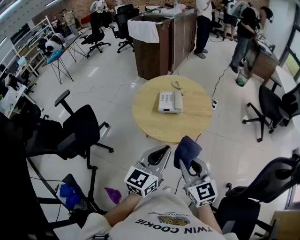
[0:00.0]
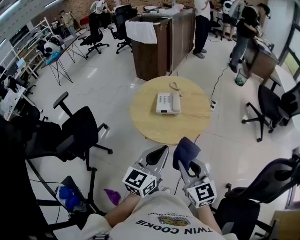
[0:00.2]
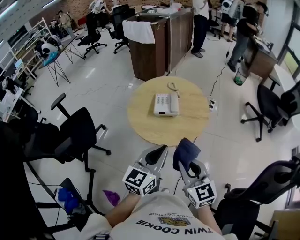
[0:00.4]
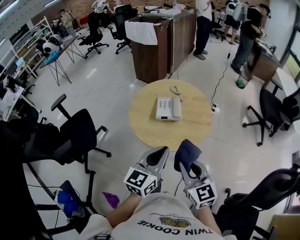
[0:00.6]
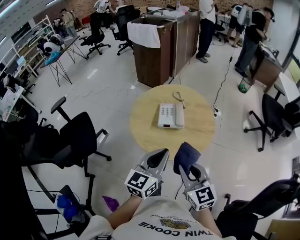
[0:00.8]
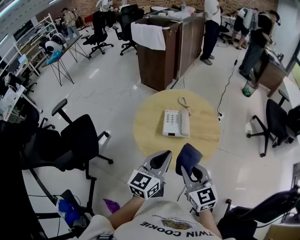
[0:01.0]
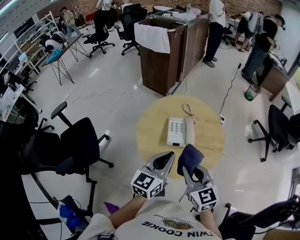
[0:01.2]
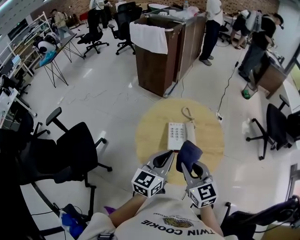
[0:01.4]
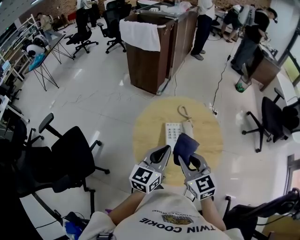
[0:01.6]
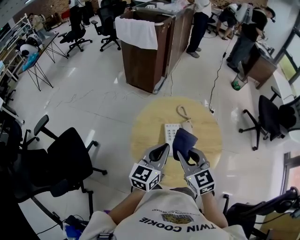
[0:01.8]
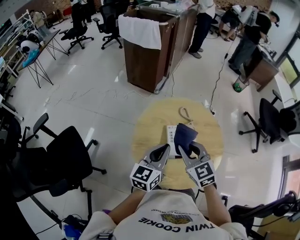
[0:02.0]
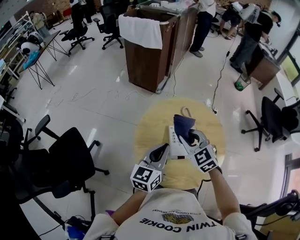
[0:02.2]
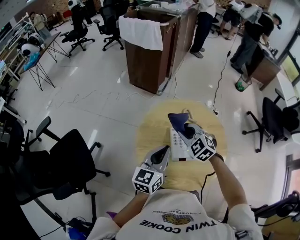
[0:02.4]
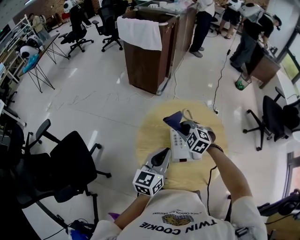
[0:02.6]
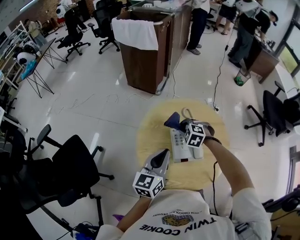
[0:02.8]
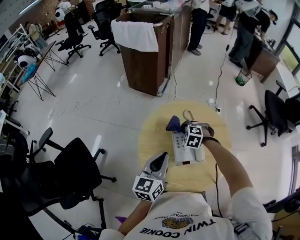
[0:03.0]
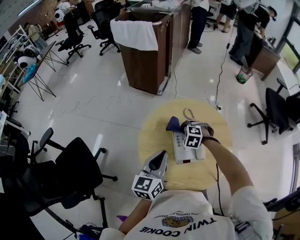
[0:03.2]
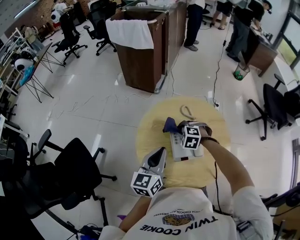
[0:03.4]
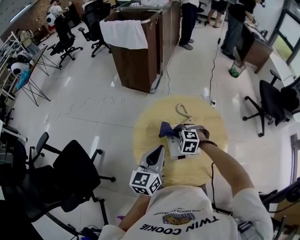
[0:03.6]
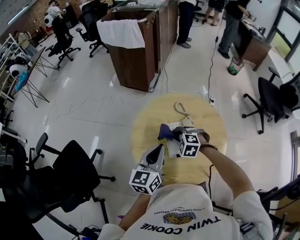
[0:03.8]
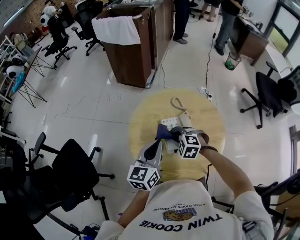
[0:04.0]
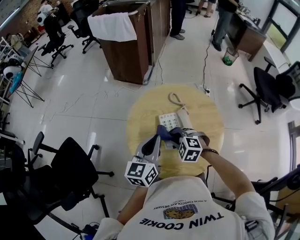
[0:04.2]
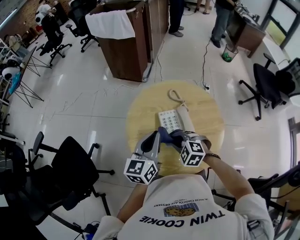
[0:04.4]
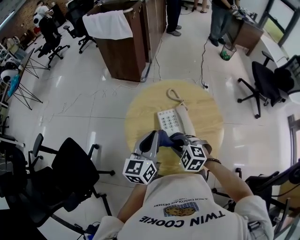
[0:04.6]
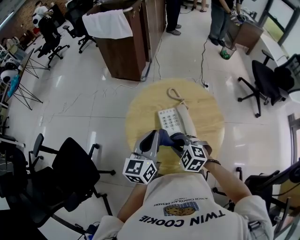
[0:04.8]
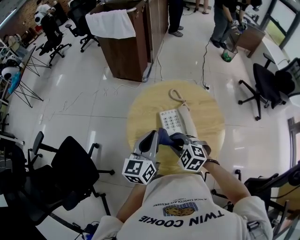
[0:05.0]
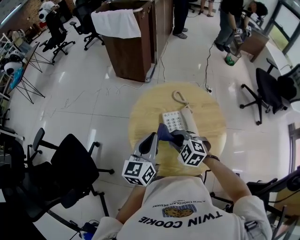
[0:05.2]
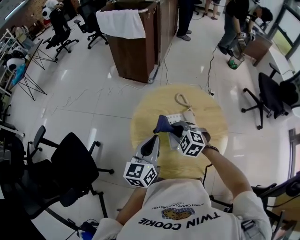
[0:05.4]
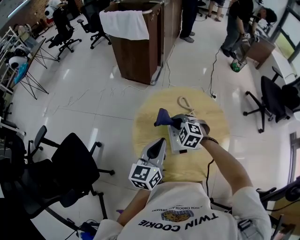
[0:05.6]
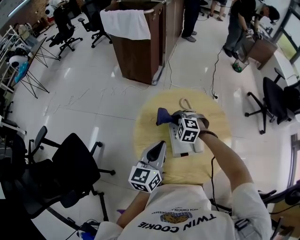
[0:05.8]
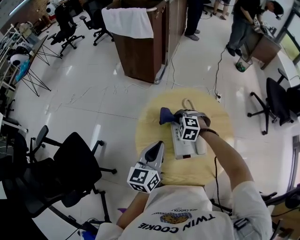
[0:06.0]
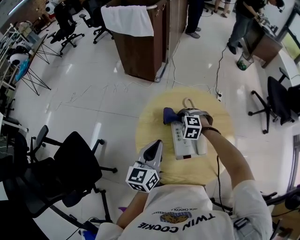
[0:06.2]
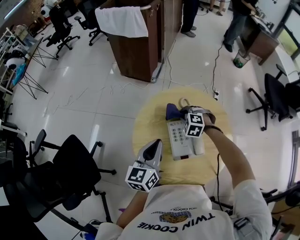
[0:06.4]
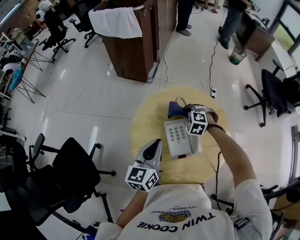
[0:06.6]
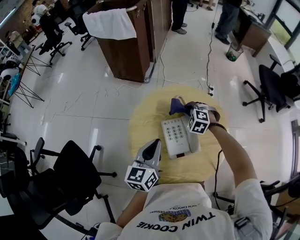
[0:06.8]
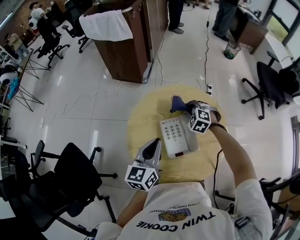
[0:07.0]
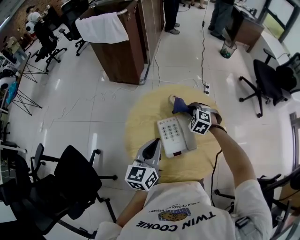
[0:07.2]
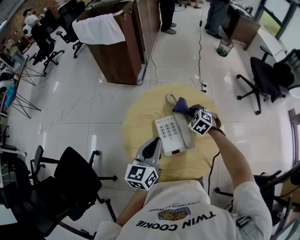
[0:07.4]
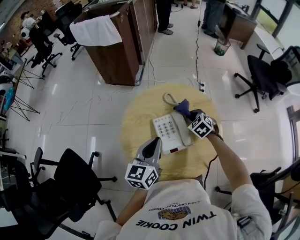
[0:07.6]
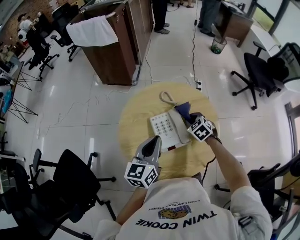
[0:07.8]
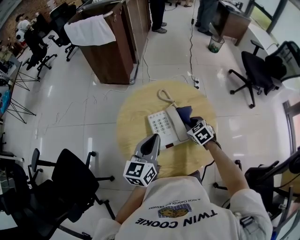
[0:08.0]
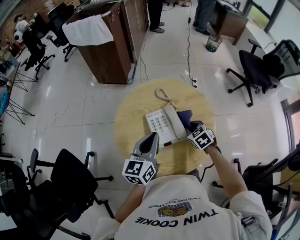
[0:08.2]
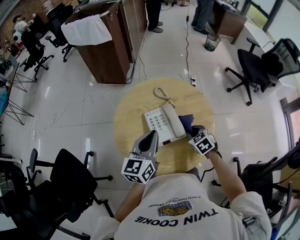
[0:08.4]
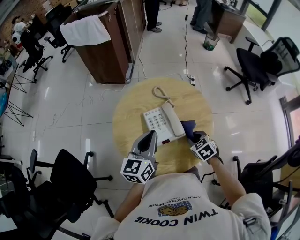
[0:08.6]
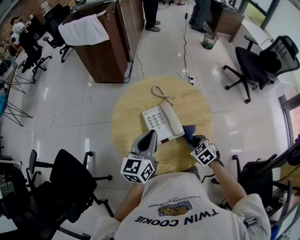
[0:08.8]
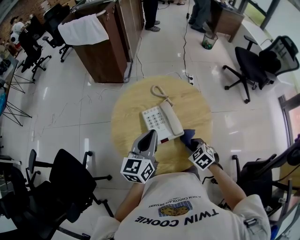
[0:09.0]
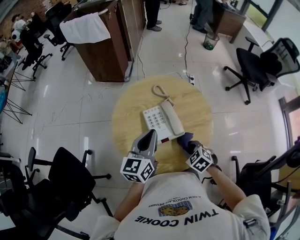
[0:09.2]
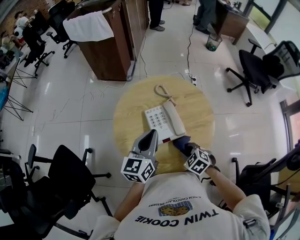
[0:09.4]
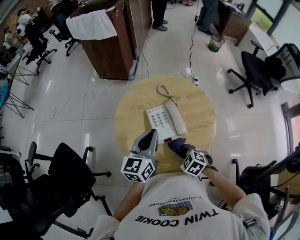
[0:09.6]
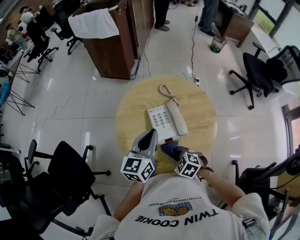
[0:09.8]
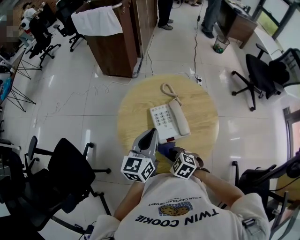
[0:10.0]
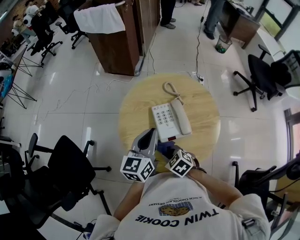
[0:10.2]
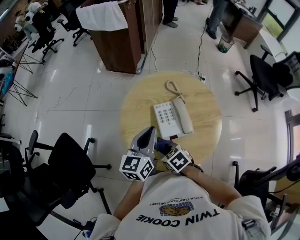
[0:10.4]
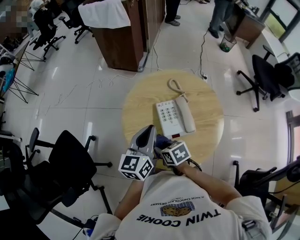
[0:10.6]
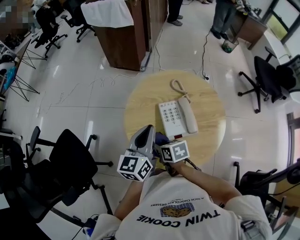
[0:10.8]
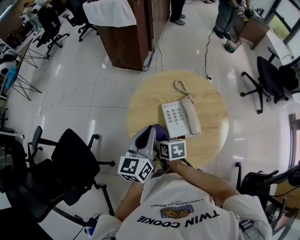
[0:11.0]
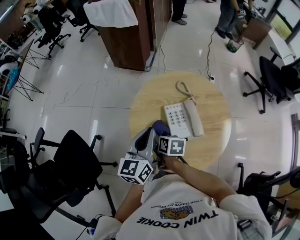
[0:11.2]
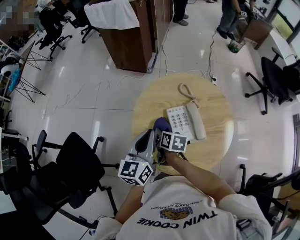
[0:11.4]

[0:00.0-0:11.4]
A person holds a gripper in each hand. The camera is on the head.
0:00.0 to 0:01.4: Both grippers move forward, approximately 25 cm.
0:01.4 to 0:02.8: The right gripper shifts some 30 cm forward and downward, and points its fingers roughly 40 degrees further downward. Meanwhile the left gripper shifts roughly 10 cm forward and to the left.
0:02.8 to 0:04.2: The right gripper is displaced backward by roughly 10 cm.
0:04.2 to 0:05.6: The right gripper shifts approximately 10 cm forward.
0:05.6 to 0:07.2: The right gripper heads to the right and forward, covering some 15 cm.
0:07.2 to 0:08.6: The right gripper is displaced backward by some 20 cm, and changes its angle by approximately 40 degrees.
0:08.6 to 0:10.0: The right gripper goes some 20 cm to the left and backward, and rotates some 30 degrees.
0:10.0 to 0:11.4: The left gripper is displaced to the left by roughly 5 cm. Meanwhile the right gripper moves forward, some 15 cm, and rolls clockwise, seen from behind, by some 70 degrees.

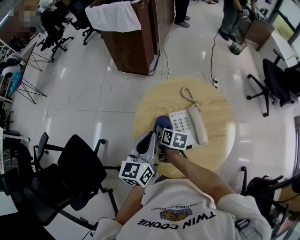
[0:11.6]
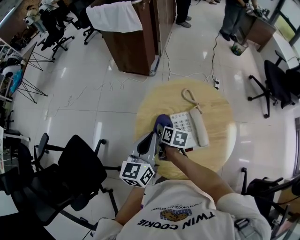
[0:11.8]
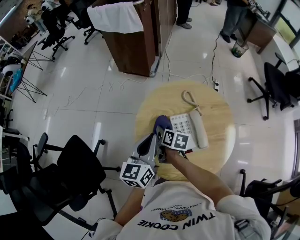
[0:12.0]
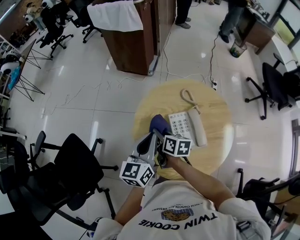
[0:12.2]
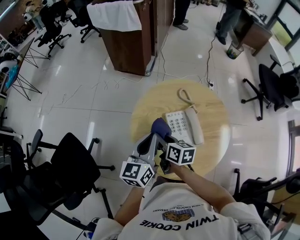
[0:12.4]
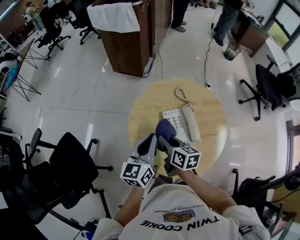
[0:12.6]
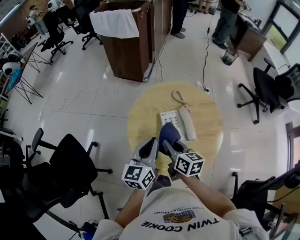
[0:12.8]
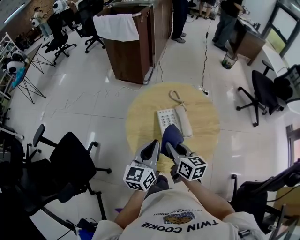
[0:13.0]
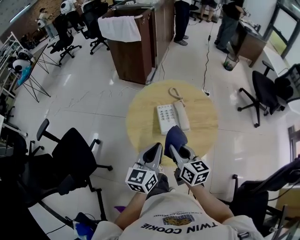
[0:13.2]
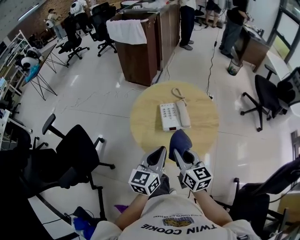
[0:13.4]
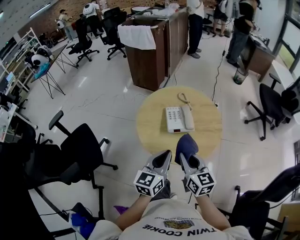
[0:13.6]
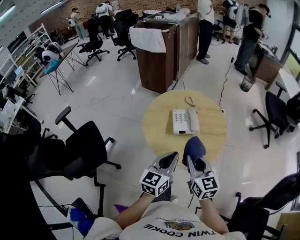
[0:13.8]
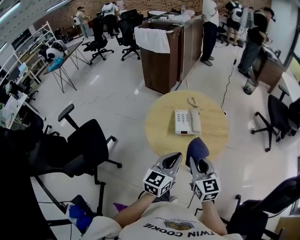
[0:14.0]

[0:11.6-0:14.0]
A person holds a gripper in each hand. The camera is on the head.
0:11.6 to 0:12.8: The right gripper shifts about 15 cm upward, backward and to the right, and turns by approximately 20 degrees. The left gripper heads backward, covering roughly 5 cm.
0:12.8 to 0:14.0: The left gripper moves backward and to the right, roughly 20 cm. The right gripper shifts approximately 20 cm backward, to the right and upward, and swivels roughly 40 degrees.

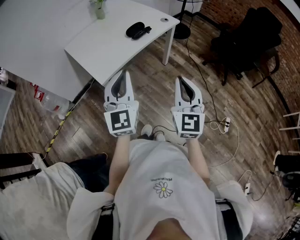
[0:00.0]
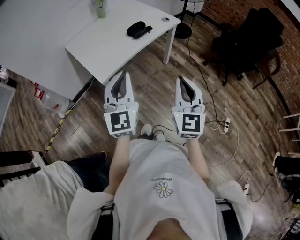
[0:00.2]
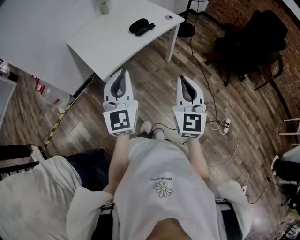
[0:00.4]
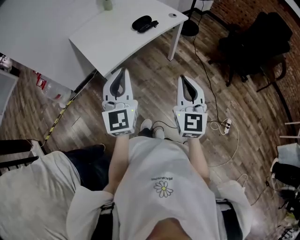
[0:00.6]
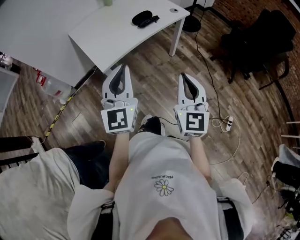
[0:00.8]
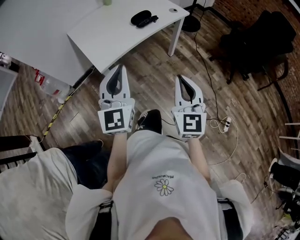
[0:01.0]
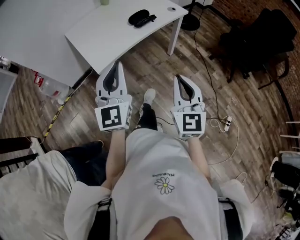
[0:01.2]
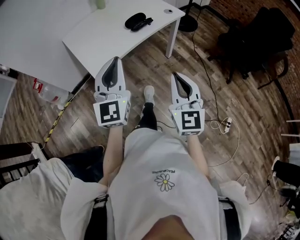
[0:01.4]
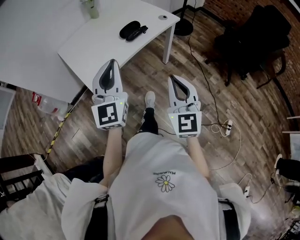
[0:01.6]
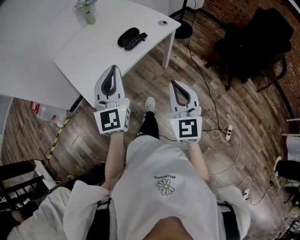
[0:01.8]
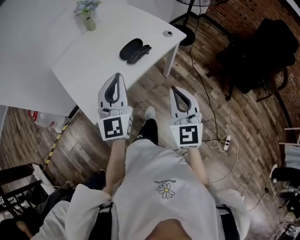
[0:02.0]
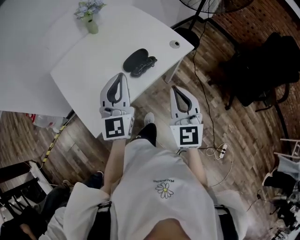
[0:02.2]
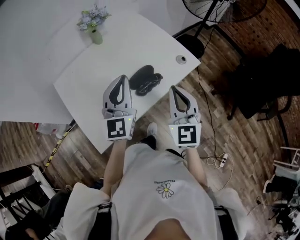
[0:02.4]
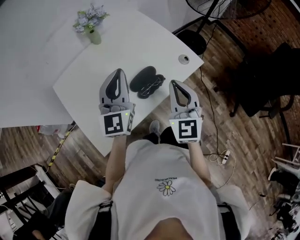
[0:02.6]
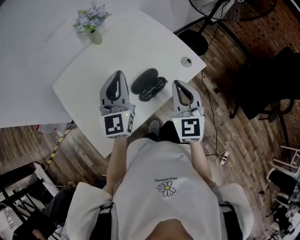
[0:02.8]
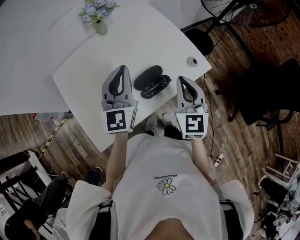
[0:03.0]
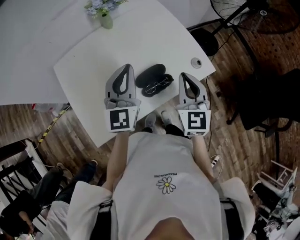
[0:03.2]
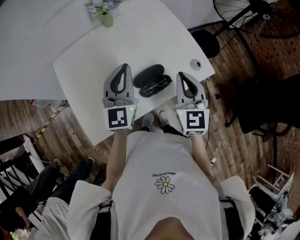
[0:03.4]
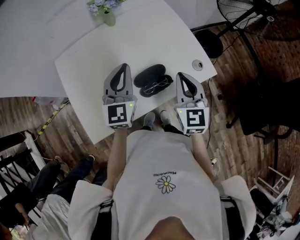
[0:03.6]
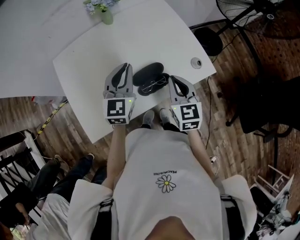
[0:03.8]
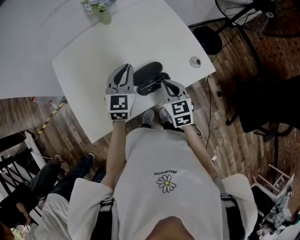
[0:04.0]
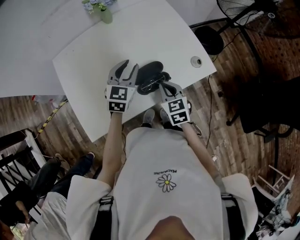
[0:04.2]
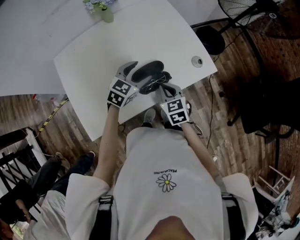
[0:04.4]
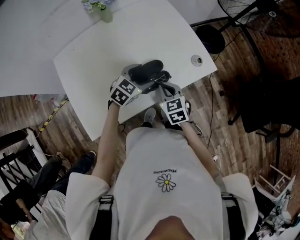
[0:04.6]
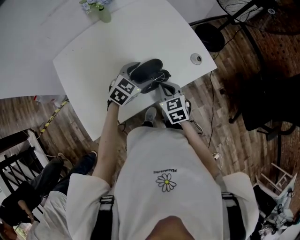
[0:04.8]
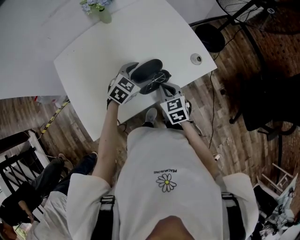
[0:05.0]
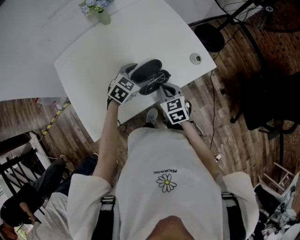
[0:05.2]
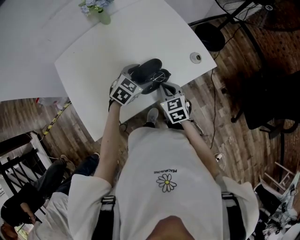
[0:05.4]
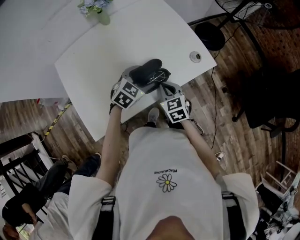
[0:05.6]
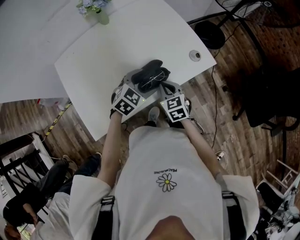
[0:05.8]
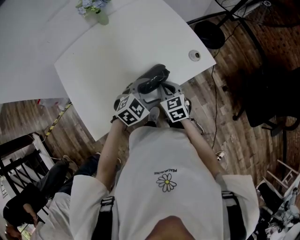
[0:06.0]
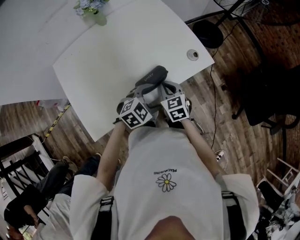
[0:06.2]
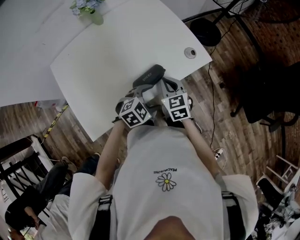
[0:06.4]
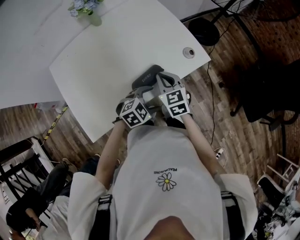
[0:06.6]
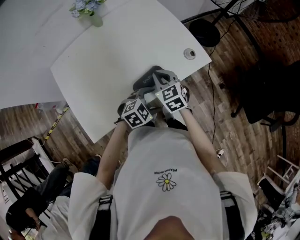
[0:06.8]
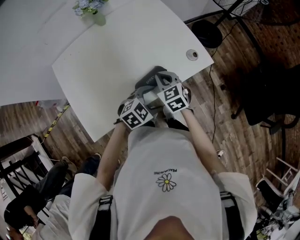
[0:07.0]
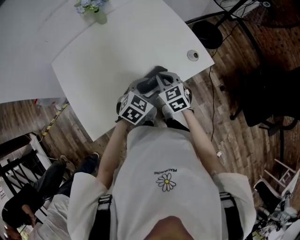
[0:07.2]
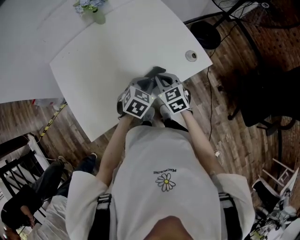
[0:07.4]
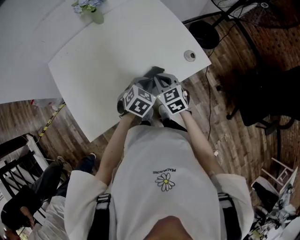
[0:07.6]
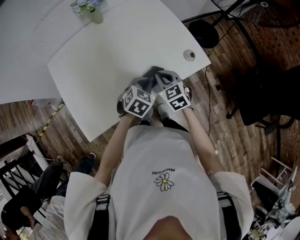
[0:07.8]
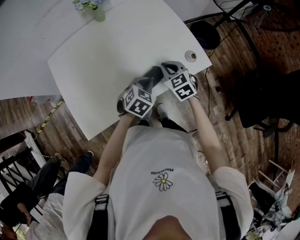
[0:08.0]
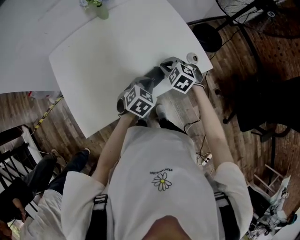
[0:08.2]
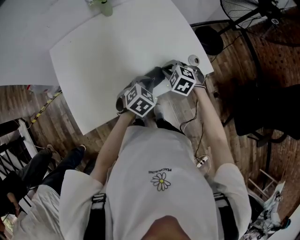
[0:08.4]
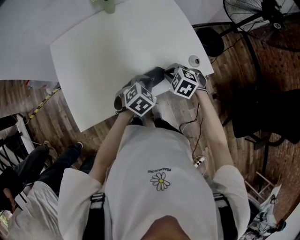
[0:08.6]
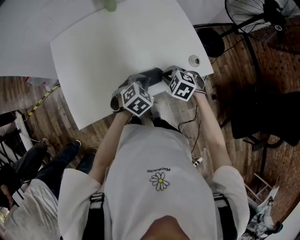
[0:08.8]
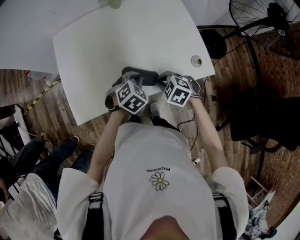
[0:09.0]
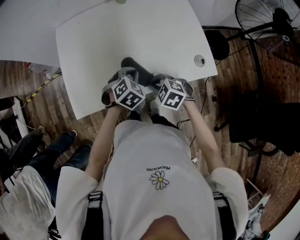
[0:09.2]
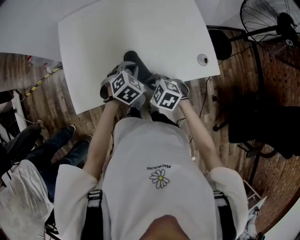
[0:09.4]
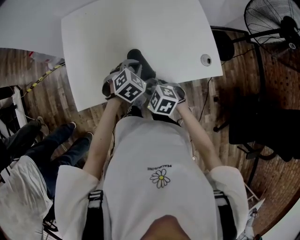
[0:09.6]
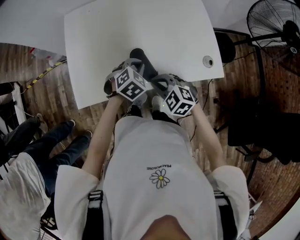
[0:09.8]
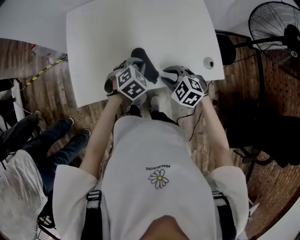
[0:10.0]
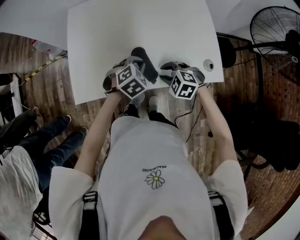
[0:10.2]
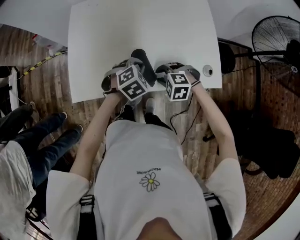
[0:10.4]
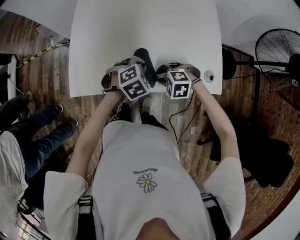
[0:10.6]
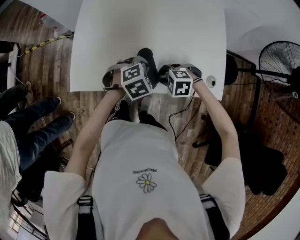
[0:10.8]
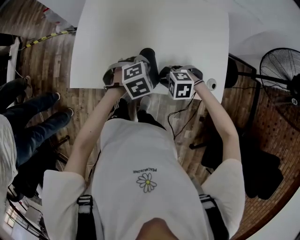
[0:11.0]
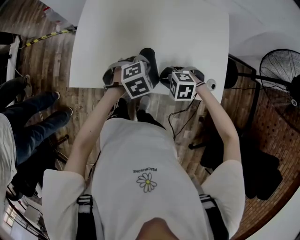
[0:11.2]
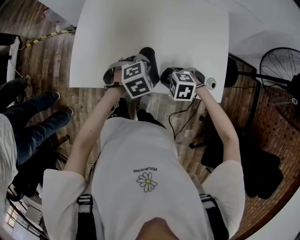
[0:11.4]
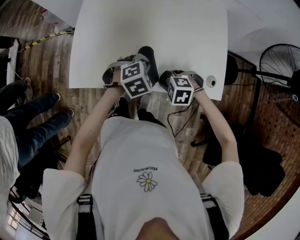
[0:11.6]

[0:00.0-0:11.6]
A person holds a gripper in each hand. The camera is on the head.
0:00.0 to 0:01.4: The right gripper shifts by roughly 5 cm, while the left gripper moves forward, some 5 cm.
0:01.4 to 0:02.8: The pair of grippers is taken forward, approximately 50 cm.
0:02.8 to 0:04.4: The two grippers go some 20 cm downward. The right gripper rotates approximately 40 degrees; the left gripper tips its fingers downward by about 40 degrees, and opens its fingers.
0:04.4 to 0:05.8: The left gripper goes some 5 cm backward.
0:07.2 to 0:08.8: The right gripper changes its angle by some 50 degrees, while the left gripper closes.
0:08.8 to 0:10.2: The two grippers go about 5 cm to the left. The right gripper changes its angle by some 20 degrees, and opens.
0:10.2 to 0:11.6: The right gripper swivels approximately 30 degrees, and closes up.
